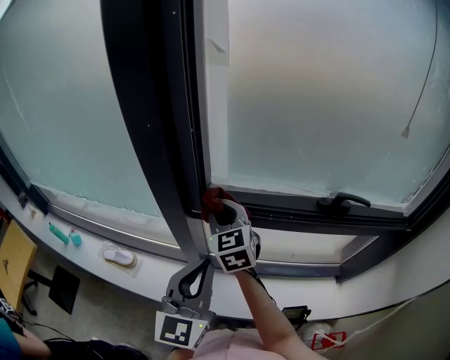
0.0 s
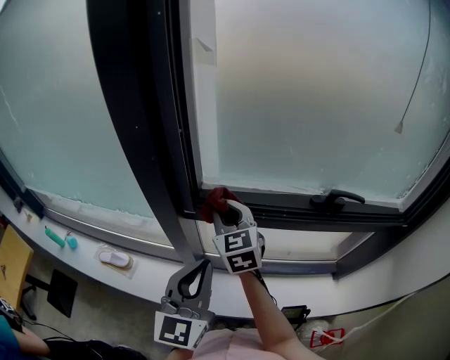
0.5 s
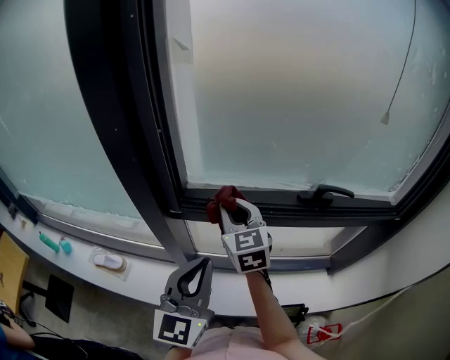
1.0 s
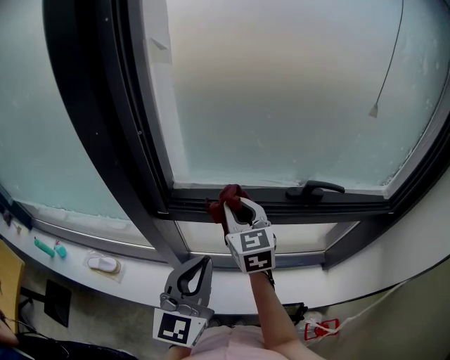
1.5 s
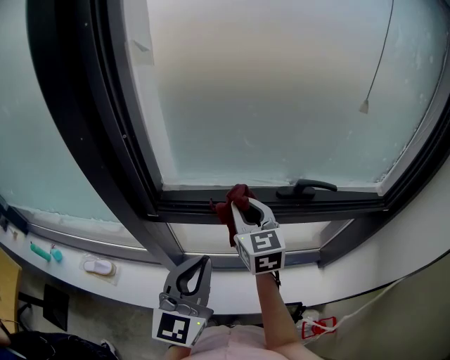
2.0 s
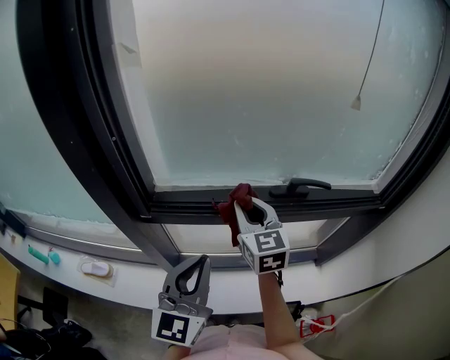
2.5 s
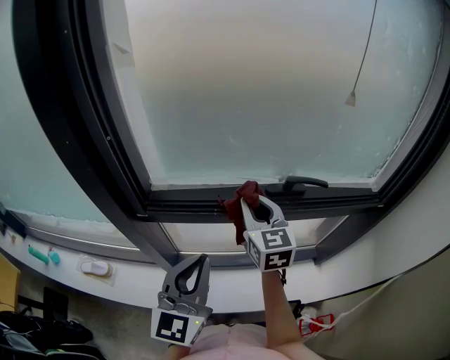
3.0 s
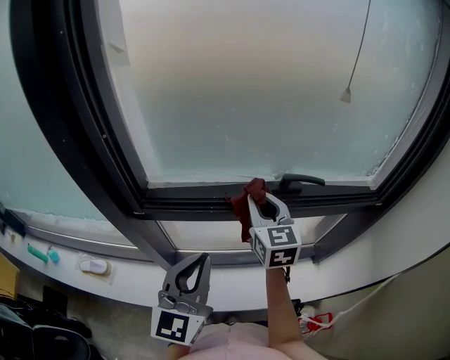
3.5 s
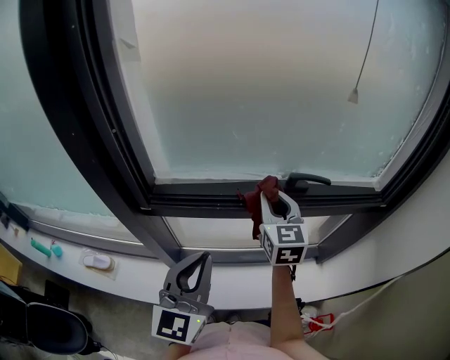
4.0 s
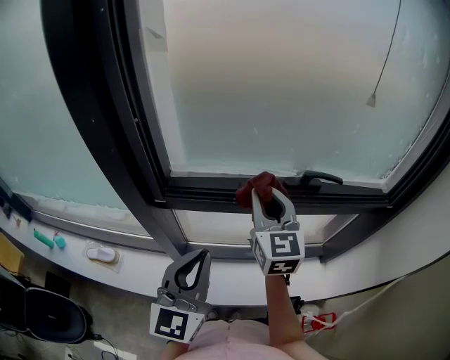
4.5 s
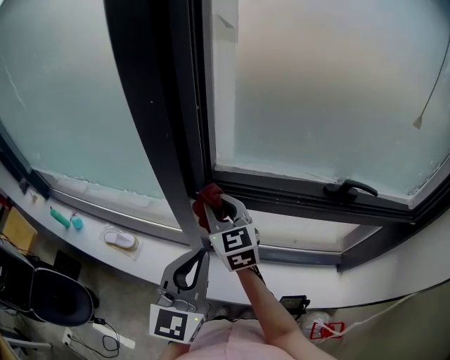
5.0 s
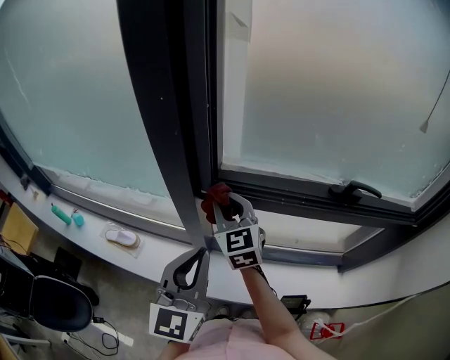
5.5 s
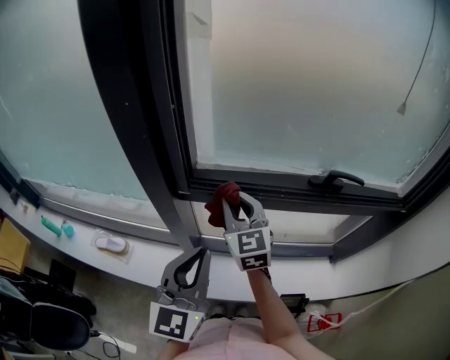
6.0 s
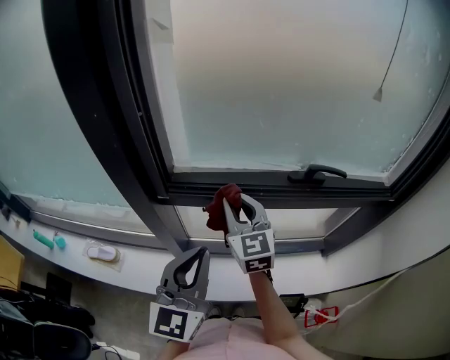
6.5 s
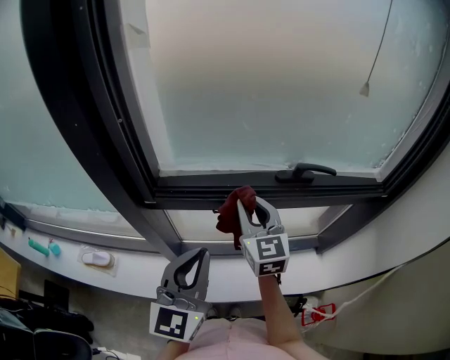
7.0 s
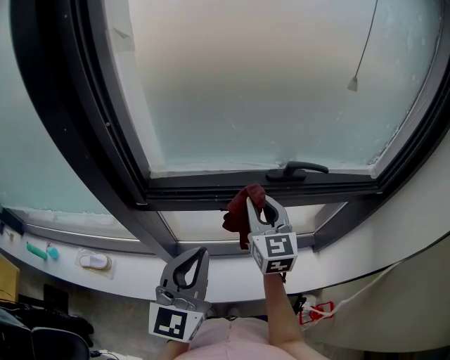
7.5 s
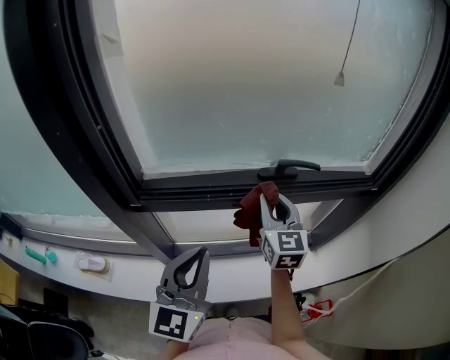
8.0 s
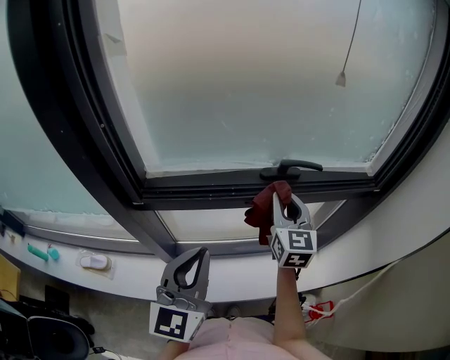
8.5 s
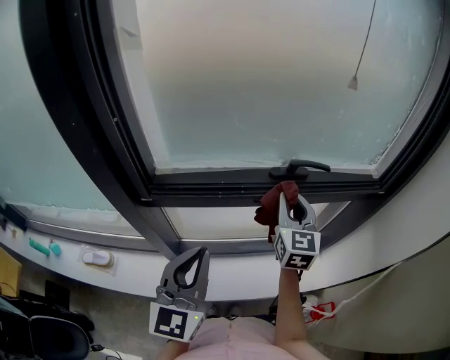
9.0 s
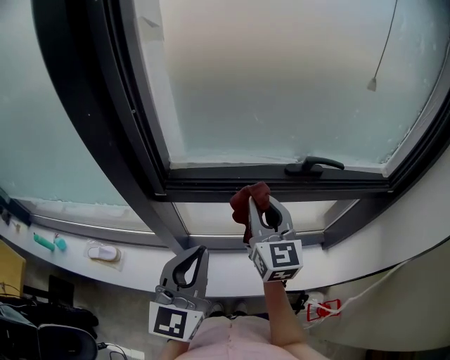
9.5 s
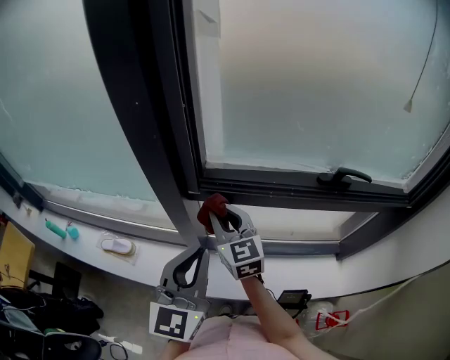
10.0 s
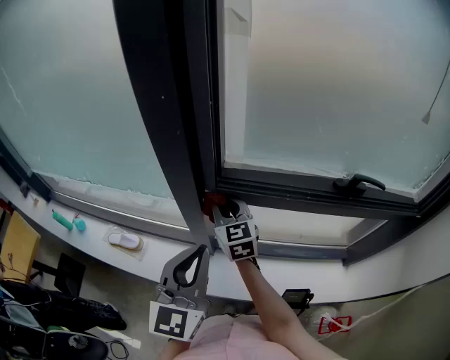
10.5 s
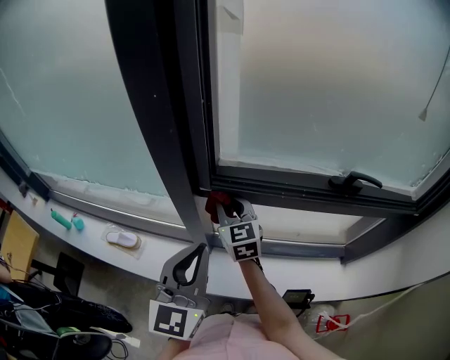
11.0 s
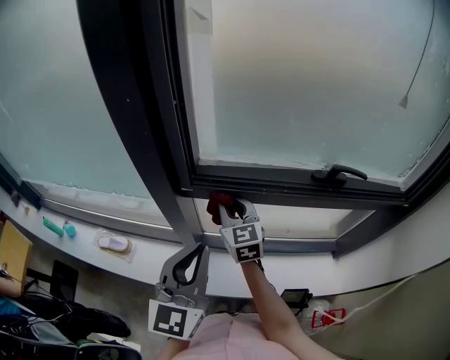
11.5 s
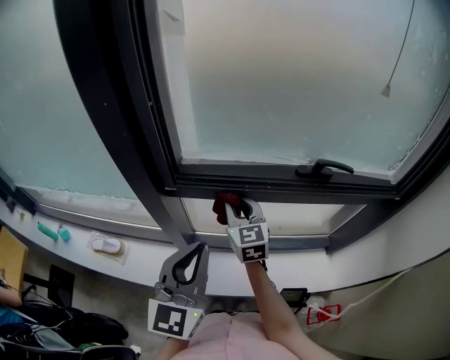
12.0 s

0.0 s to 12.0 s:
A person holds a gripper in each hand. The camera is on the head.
0.0 to 2.0 s: The right gripper travels to the right by roughly 20 cm. The left gripper goes roughly 10 cm to the right.
2.0 to 4.0 s: The right gripper travels to the right by about 10 cm.
4.0 to 6.0 s: The right gripper moves to the left, approximately 20 cm; the left gripper is displaced to the left by approximately 10 cm.
6.0 to 8.0 s: The right gripper is displaced to the right by approximately 25 cm, and swivels some 20 degrees. Meanwhile the left gripper moves to the right, about 10 cm.
8.0 to 10.0 s: The right gripper heads to the left, covering about 30 cm, and swivels approximately 30 degrees; the left gripper goes approximately 15 cm to the left.
10.0 to 12.0 s: The right gripper shifts approximately 10 cm to the right, while the left gripper goes some 5 cm to the right.

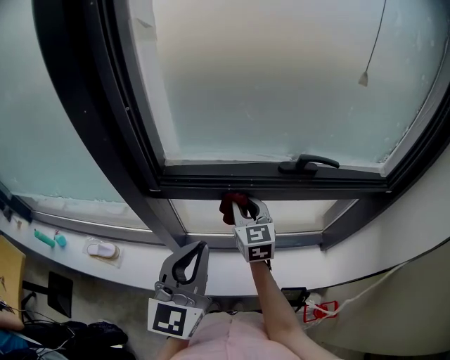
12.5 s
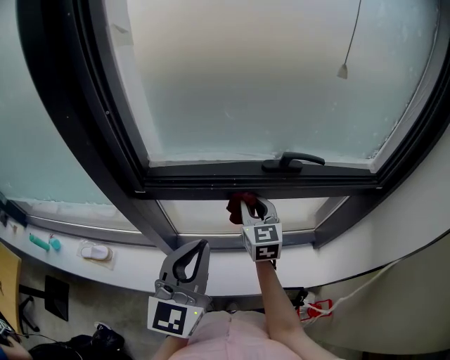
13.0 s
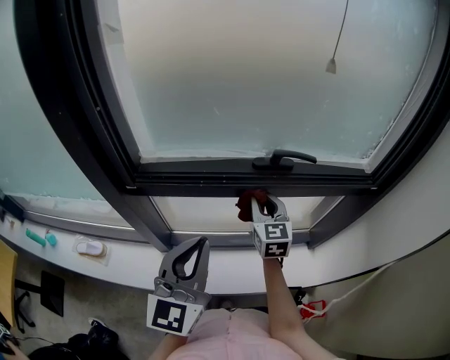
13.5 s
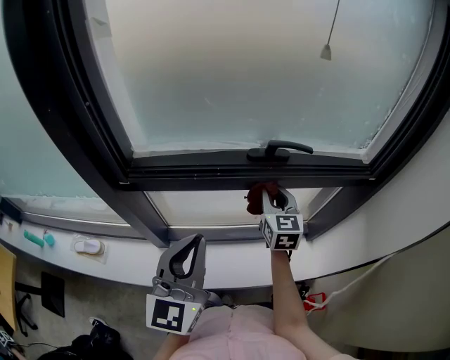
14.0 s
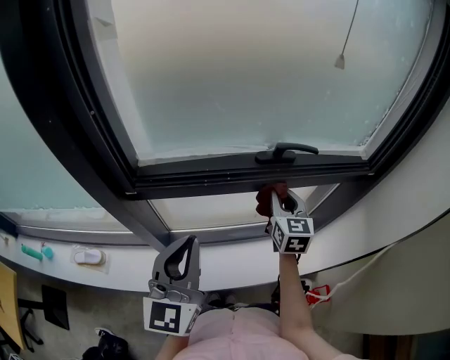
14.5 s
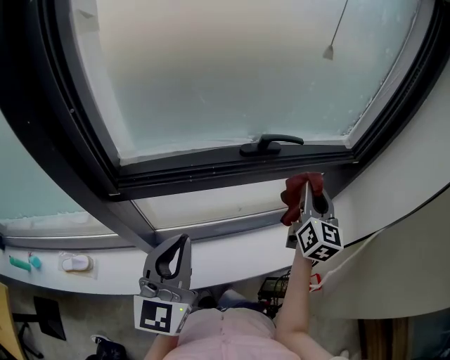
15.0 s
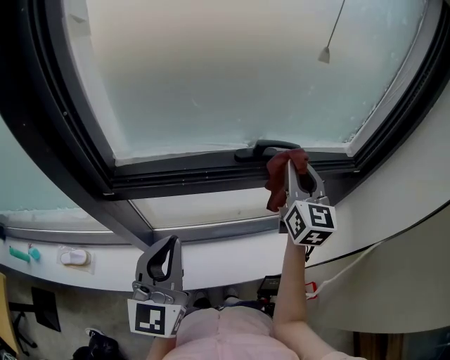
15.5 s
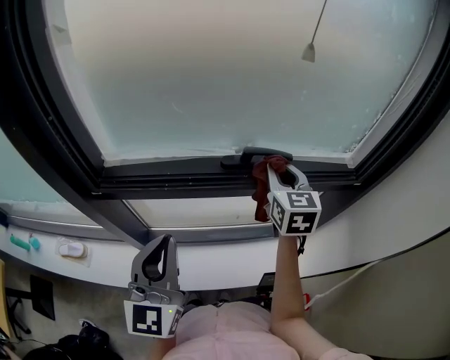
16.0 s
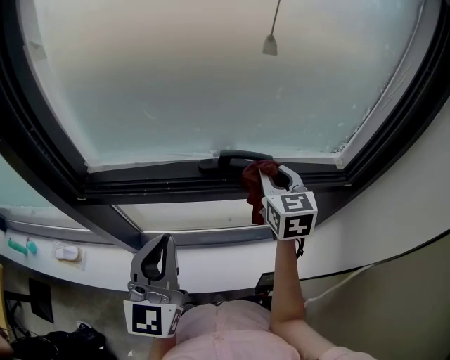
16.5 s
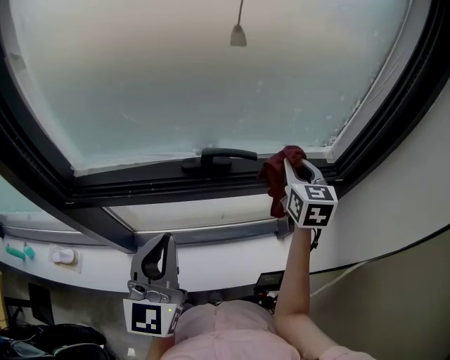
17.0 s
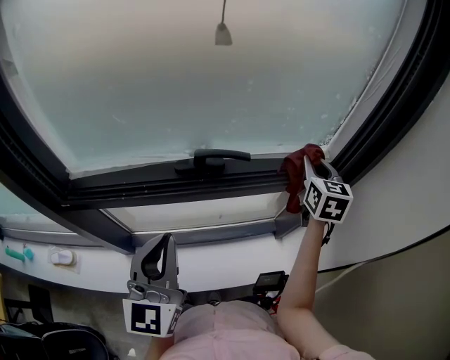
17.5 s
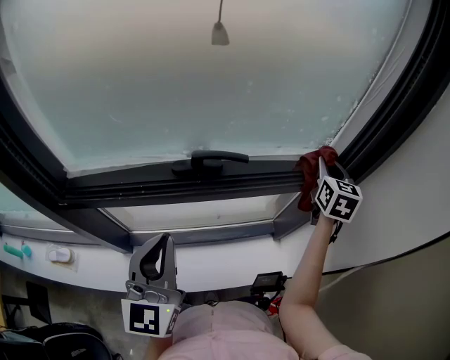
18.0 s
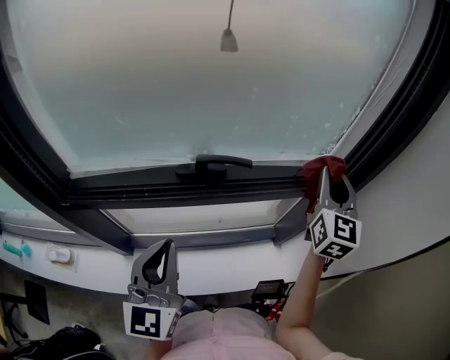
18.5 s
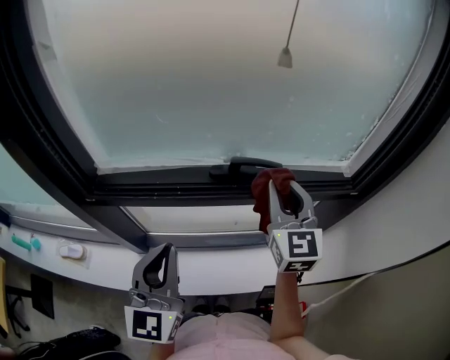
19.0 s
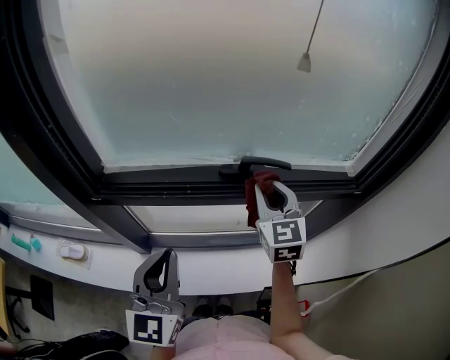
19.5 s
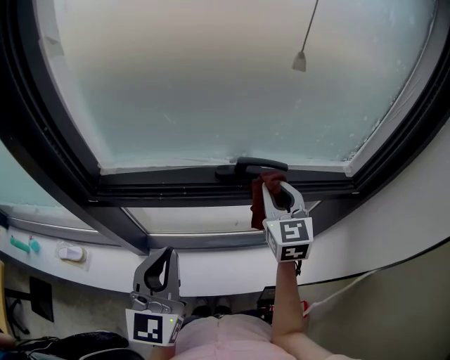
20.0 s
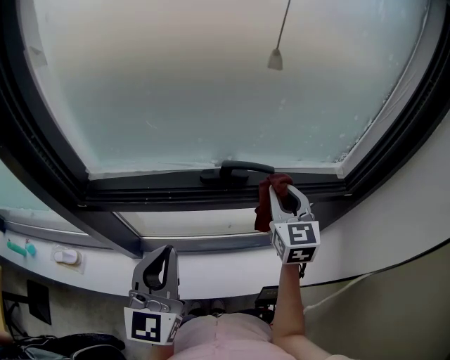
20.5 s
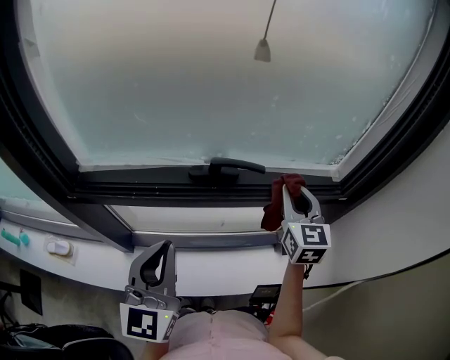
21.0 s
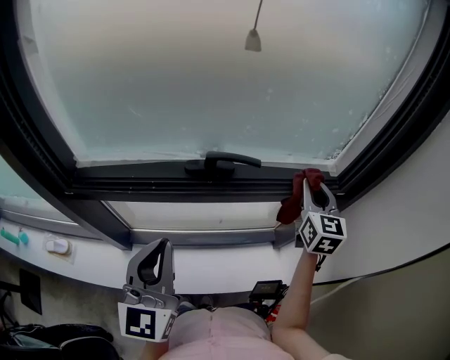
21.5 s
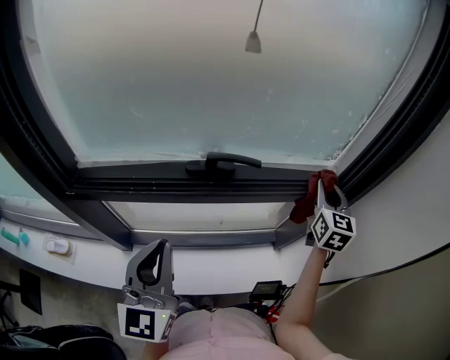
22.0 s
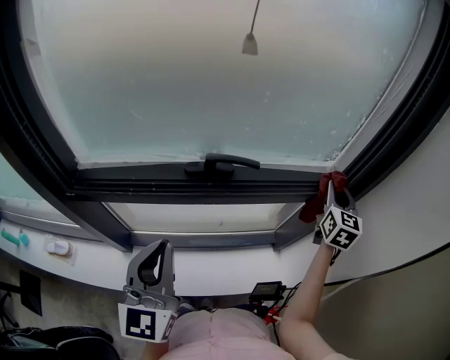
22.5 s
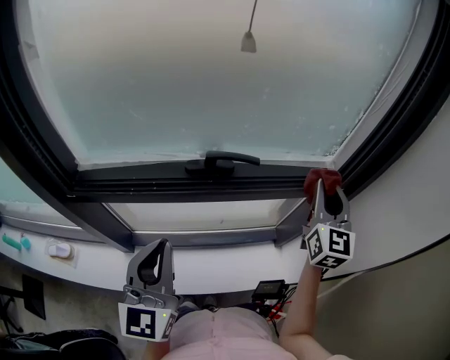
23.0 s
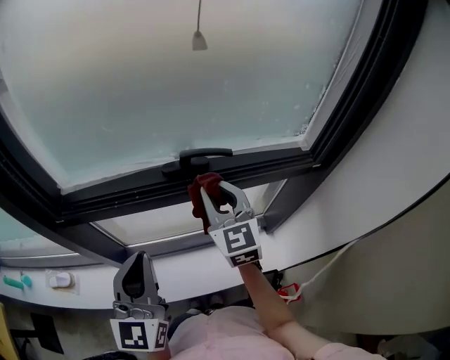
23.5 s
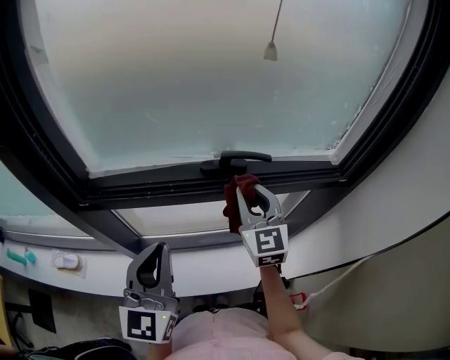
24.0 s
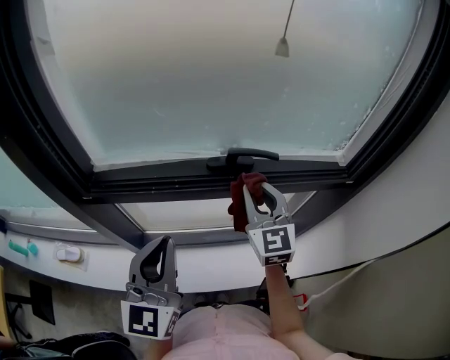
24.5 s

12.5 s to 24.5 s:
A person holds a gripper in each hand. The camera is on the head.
12.5 to 14.5 s: The right gripper shifts about 20 cm to the right.
14.5 to 16.5 s: The right gripper travels upward, to the right and forward by about 15 cm, while the left gripper shifts some 10 cm to the right and forward.
16.5 to 18.5 s: The right gripper heads to the right, covering roughly 20 cm, and rotates about 30 degrees; the left gripper is displaced to the right by about 5 cm.
18.5 to 20.5 s: The left gripper goes approximately 5 cm to the left, while the right gripper is displaced to the left and downward by about 20 cm, and swivels about 20 degrees.
20.5 to 22.5 s: The right gripper goes approximately 25 cm to the right, and changes its angle by about 20 degrees.
22.5 to 24.5 s: The left gripper heads to the left, covering about 5 cm. The right gripper is displaced to the left by roughly 30 cm, and rotates about 30 degrees.

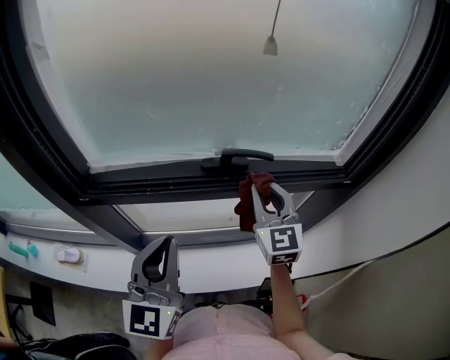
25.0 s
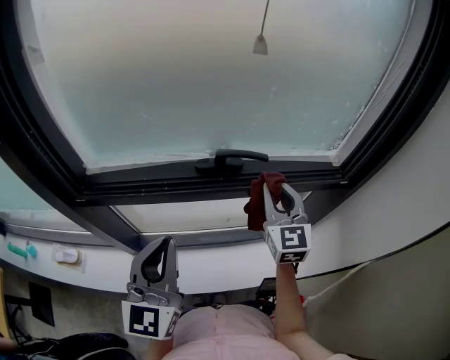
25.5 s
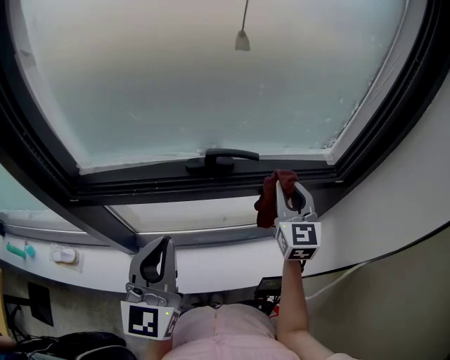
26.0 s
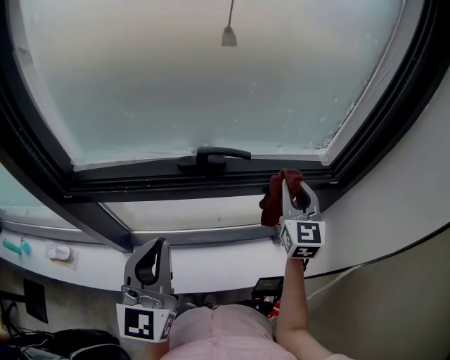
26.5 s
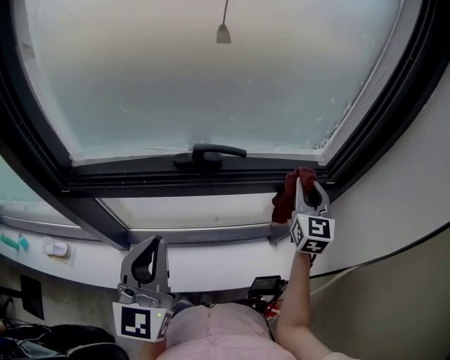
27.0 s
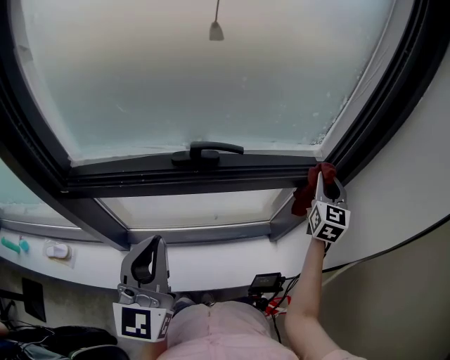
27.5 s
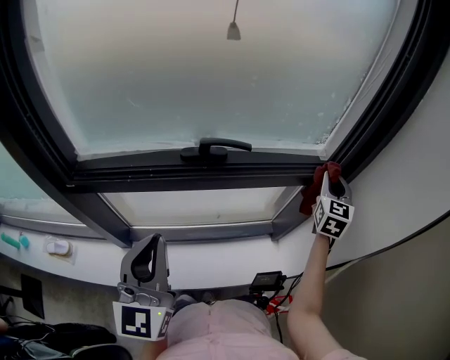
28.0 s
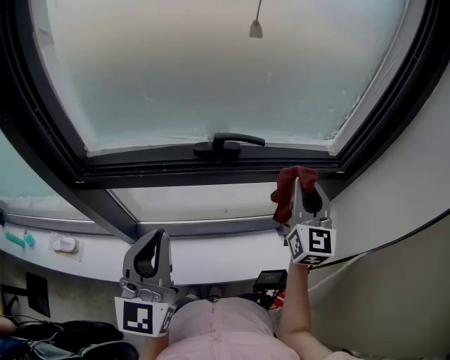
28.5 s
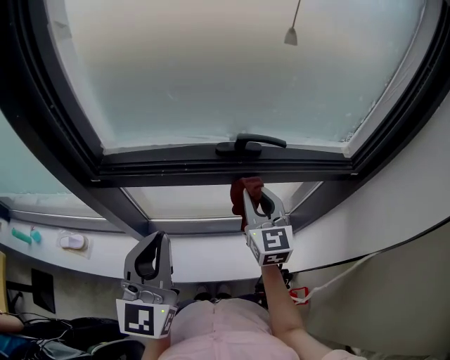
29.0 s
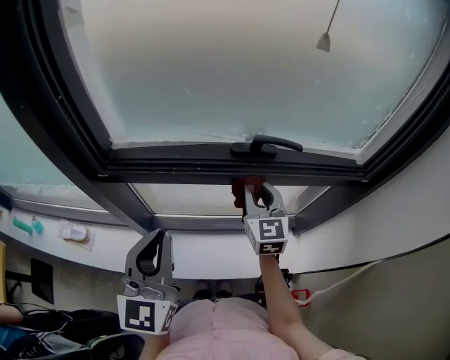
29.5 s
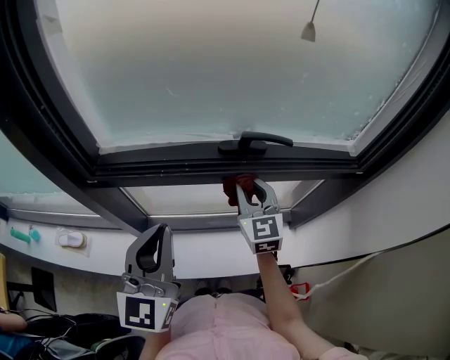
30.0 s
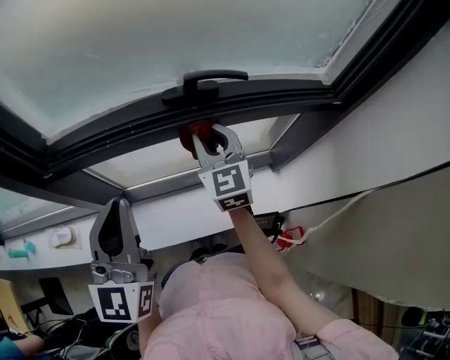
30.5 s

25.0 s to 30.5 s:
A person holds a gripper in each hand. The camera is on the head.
25.0 to 27.0 s: The left gripper travels to the right by roughly 5 cm, while the right gripper moves to the right, roughly 20 cm.
27.0 to 28.5 s: The right gripper shifts approximately 10 cm backward and to the left.
28.5 to 30.5 s: The right gripper travels to the left and downward by about 20 cm, while the left gripper changes place by some 5 cm.
